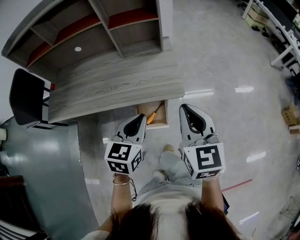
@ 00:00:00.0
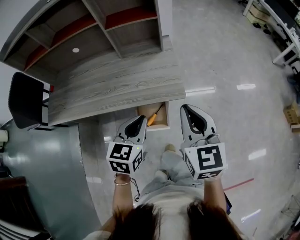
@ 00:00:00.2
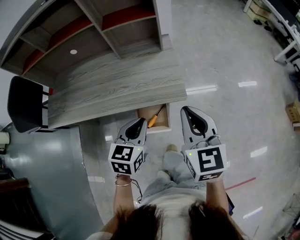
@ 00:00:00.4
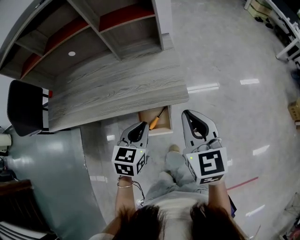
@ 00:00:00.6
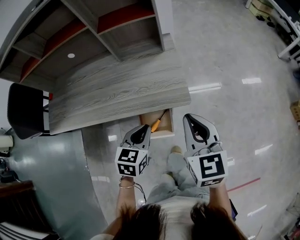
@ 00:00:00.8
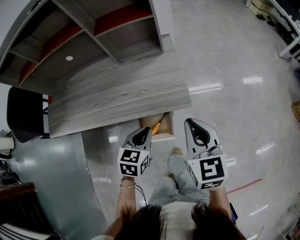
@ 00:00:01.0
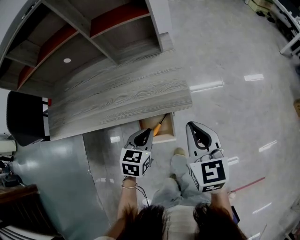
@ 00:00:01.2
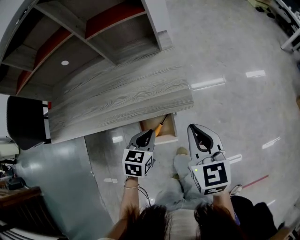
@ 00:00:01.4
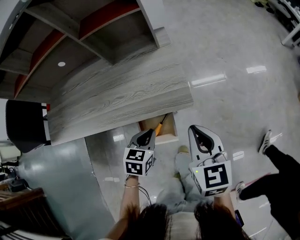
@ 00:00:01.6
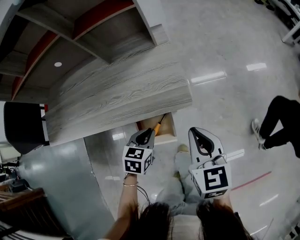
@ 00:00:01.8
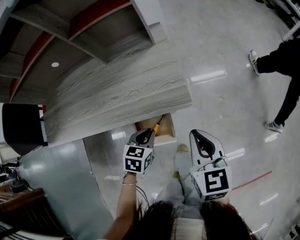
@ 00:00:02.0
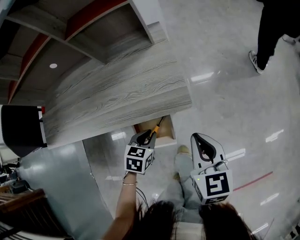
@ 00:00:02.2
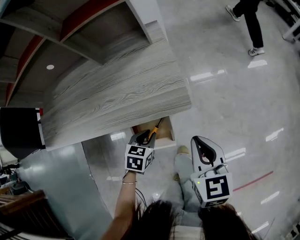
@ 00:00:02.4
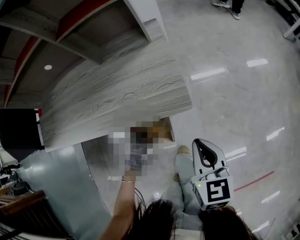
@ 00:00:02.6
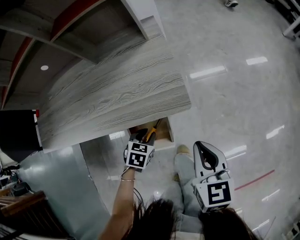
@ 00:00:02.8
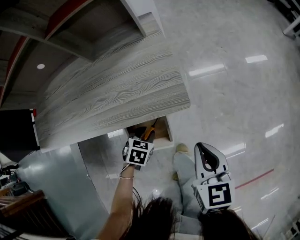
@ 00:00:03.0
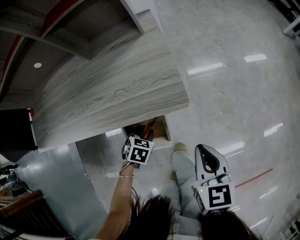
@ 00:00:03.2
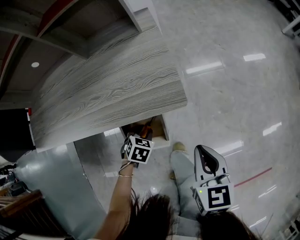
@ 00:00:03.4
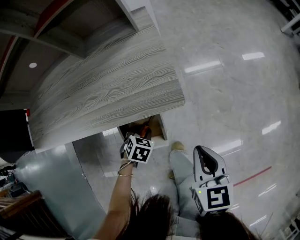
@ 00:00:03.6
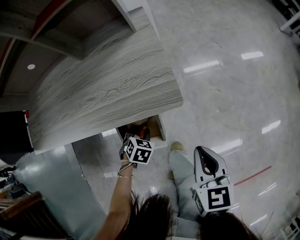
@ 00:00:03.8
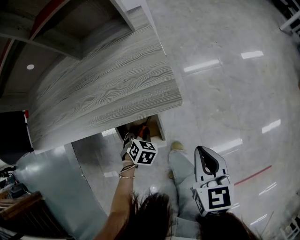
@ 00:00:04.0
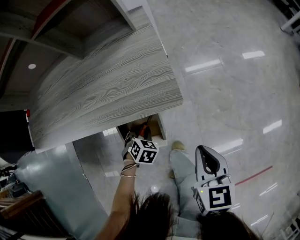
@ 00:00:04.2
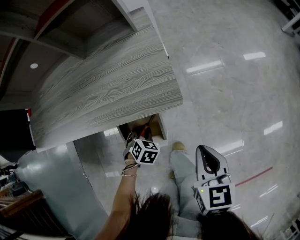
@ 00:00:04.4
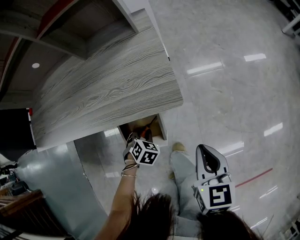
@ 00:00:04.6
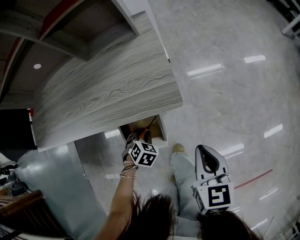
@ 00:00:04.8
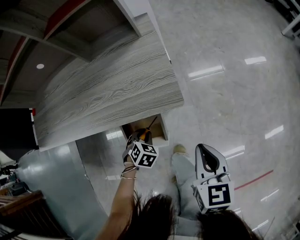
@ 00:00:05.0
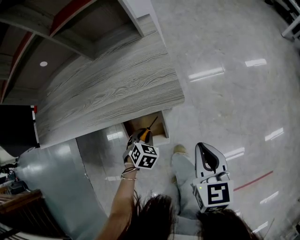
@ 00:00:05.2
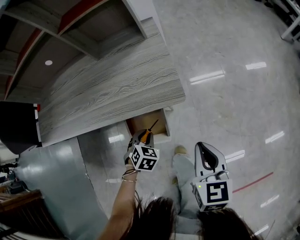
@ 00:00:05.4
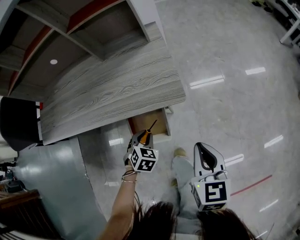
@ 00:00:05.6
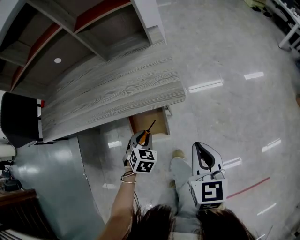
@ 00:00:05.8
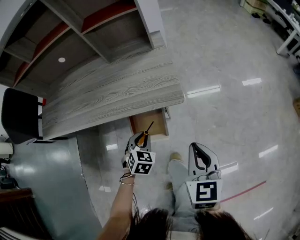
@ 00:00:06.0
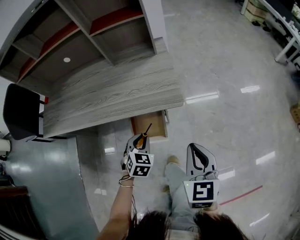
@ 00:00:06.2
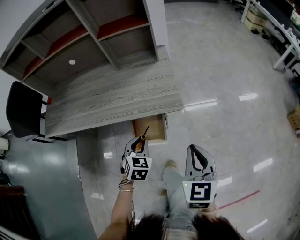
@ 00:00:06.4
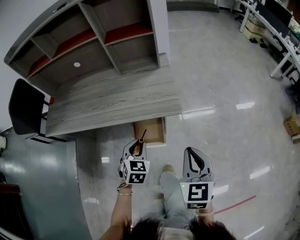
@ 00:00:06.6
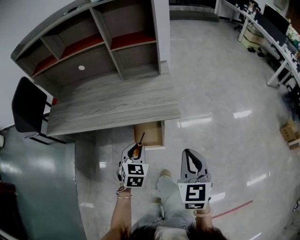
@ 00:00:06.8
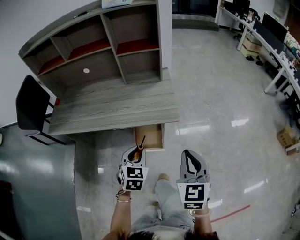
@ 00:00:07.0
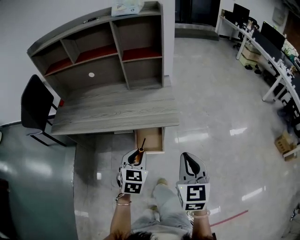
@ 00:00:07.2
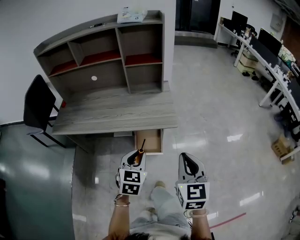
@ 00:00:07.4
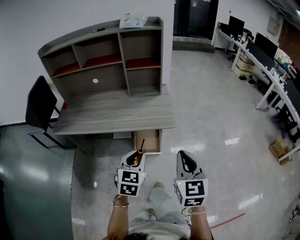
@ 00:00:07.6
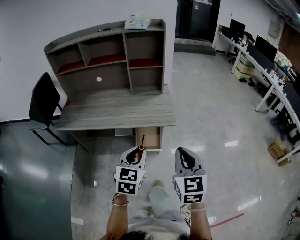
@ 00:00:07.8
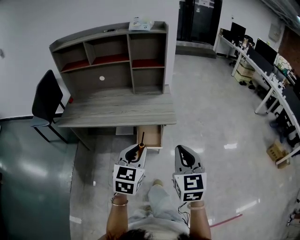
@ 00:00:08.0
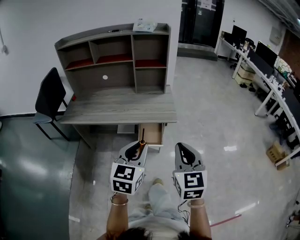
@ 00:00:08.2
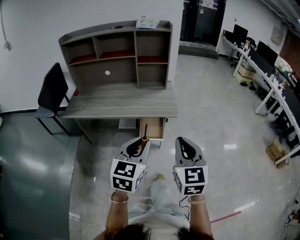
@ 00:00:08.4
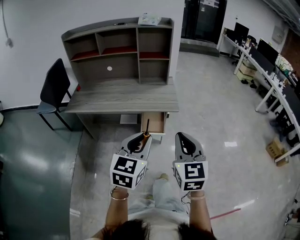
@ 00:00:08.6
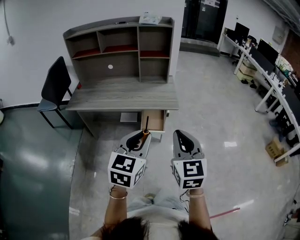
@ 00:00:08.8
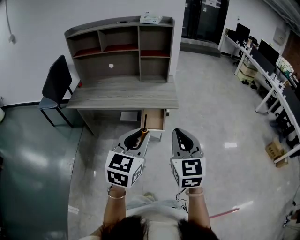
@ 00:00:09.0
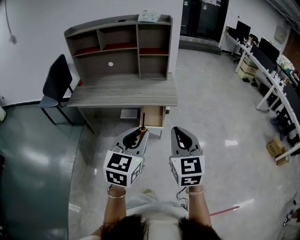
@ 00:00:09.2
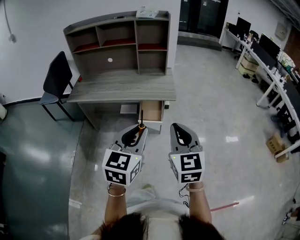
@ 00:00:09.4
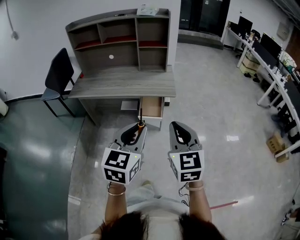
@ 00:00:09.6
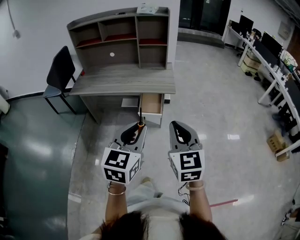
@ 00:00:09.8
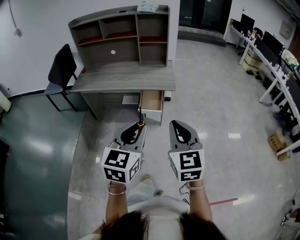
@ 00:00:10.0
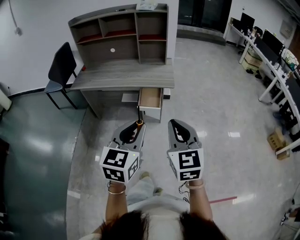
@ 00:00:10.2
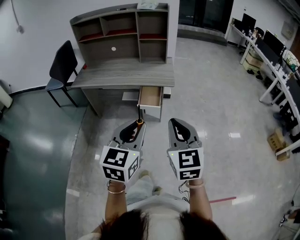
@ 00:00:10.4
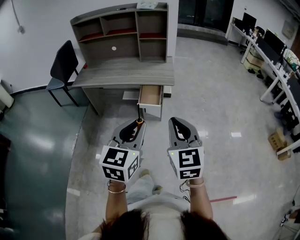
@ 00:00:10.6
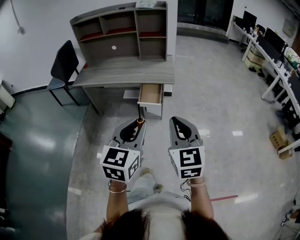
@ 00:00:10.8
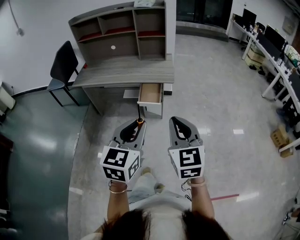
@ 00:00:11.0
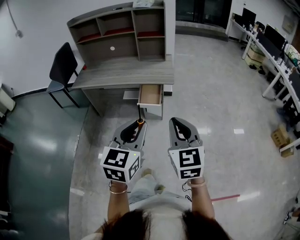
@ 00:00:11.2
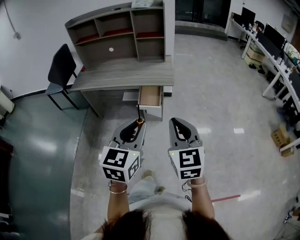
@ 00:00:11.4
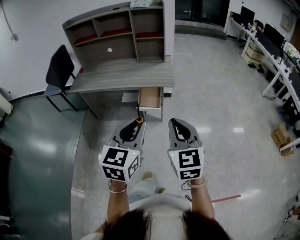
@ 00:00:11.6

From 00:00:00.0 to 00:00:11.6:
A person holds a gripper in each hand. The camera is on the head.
From 00:00:00.0 to 00:00:01.4: The left gripper moves downward, some 20 cm; the right gripper travels downward and forward by approximately 15 cm.
From 00:00:01.4 to 00:00:02.8: The left gripper travels downward by roughly 15 cm, and opens up. Meanwhile the right gripper heads downward, covering roughly 10 cm.
From 00:00:02.8 to 00:00:04.4: The left gripper moves downward, roughly 5 cm, and turns by roughly 20 degrees; the right gripper ends up approximately 5 cm from where it was.
From 00:00:04.4 to 00:00:05.8: The left gripper goes approximately 10 cm upward. Meanwhile the right gripper shifts some 5 cm upward.
From 00:00:05.8 to 00:00:07.2: The two grippers go roughly 20 cm upward and backward. The left gripper swivels some 30 degrees.
From 00:00:07.2 to 00:00:08.8: Both grippers move backward and upward, some 25 cm. The left gripper changes its angle by roughly 20 degrees.
From 00:00:08.8 to 00:00:10.2: Both grippers travel together backward and to the right, approximately 15 cm.
From 00:00:10.2 to 00:00:11.6: The grippers make only small movements.

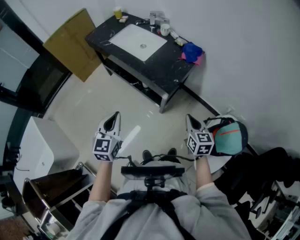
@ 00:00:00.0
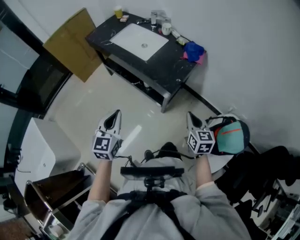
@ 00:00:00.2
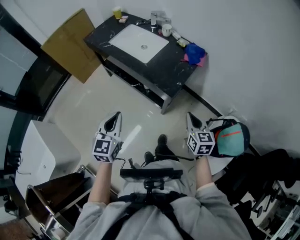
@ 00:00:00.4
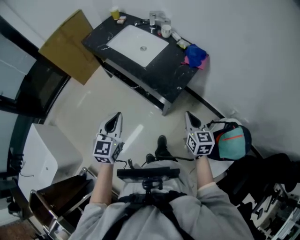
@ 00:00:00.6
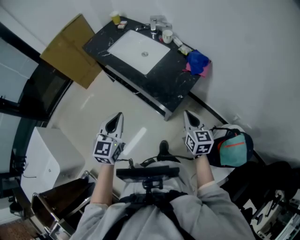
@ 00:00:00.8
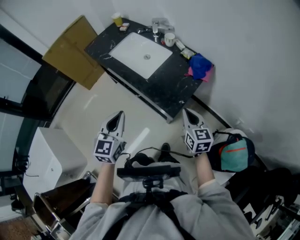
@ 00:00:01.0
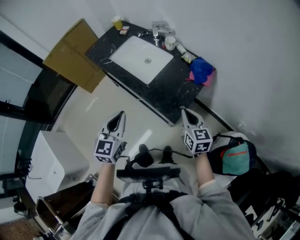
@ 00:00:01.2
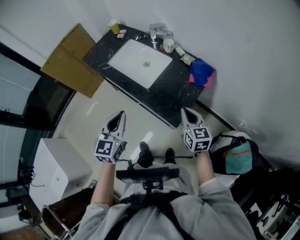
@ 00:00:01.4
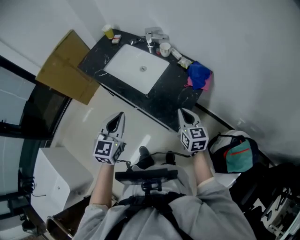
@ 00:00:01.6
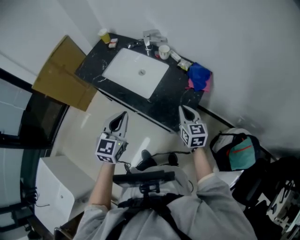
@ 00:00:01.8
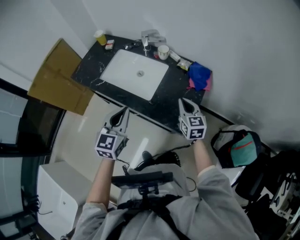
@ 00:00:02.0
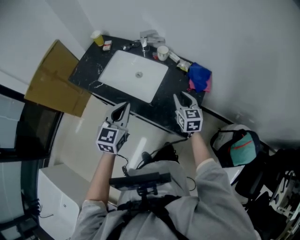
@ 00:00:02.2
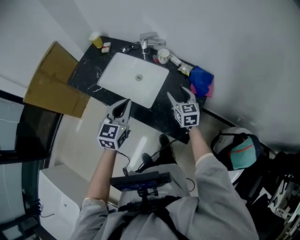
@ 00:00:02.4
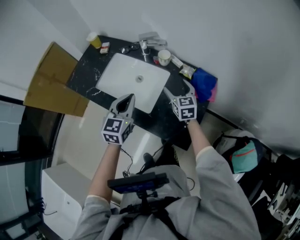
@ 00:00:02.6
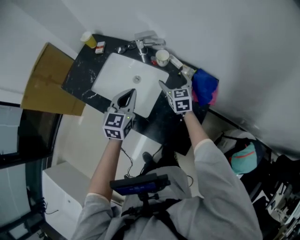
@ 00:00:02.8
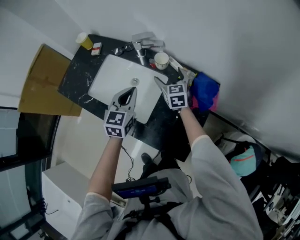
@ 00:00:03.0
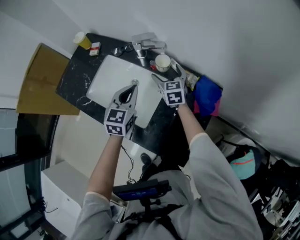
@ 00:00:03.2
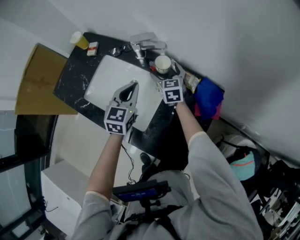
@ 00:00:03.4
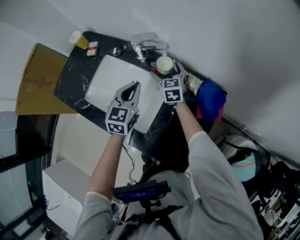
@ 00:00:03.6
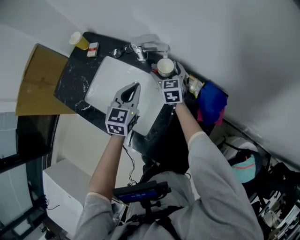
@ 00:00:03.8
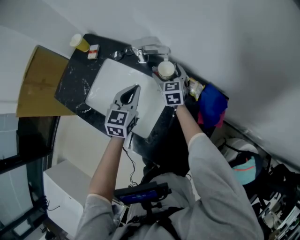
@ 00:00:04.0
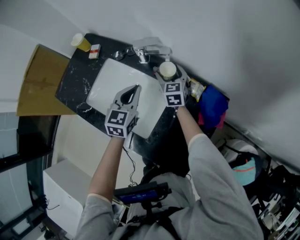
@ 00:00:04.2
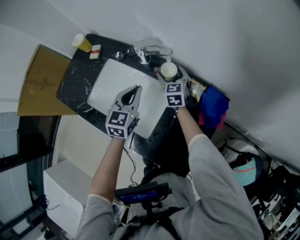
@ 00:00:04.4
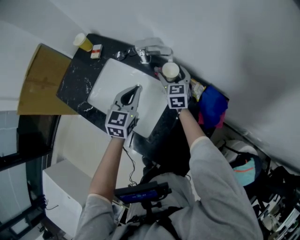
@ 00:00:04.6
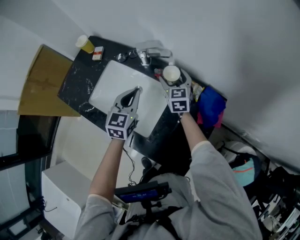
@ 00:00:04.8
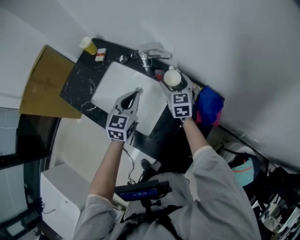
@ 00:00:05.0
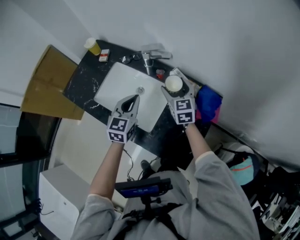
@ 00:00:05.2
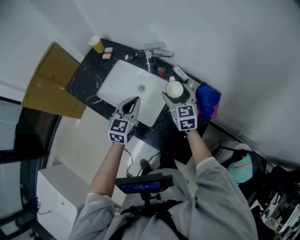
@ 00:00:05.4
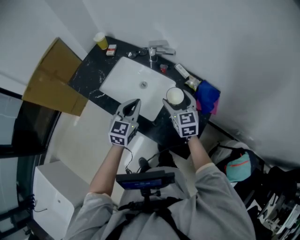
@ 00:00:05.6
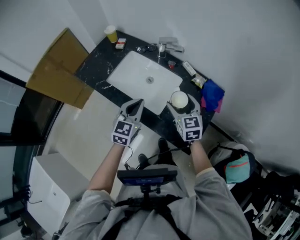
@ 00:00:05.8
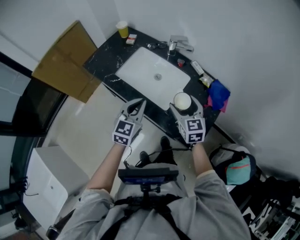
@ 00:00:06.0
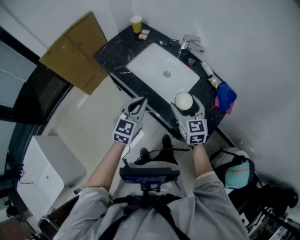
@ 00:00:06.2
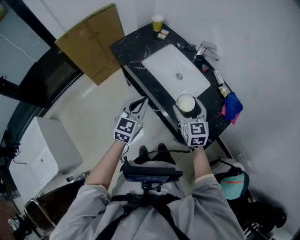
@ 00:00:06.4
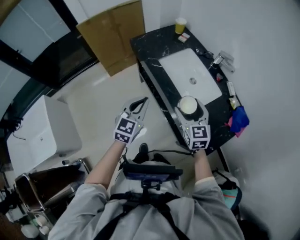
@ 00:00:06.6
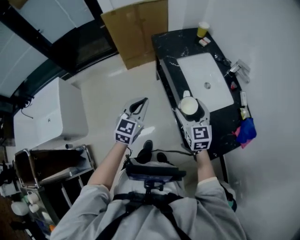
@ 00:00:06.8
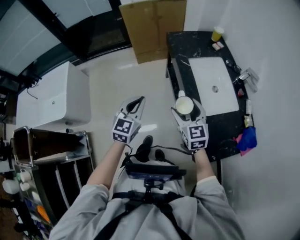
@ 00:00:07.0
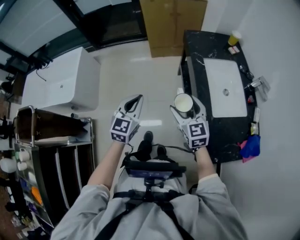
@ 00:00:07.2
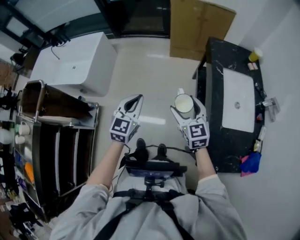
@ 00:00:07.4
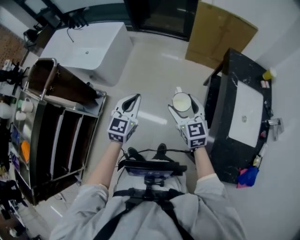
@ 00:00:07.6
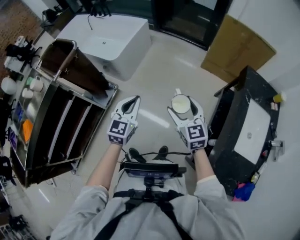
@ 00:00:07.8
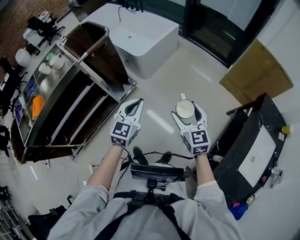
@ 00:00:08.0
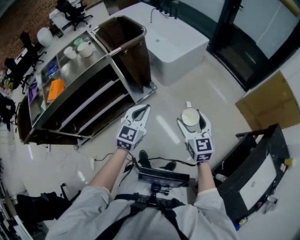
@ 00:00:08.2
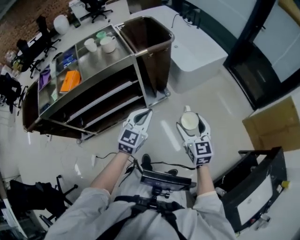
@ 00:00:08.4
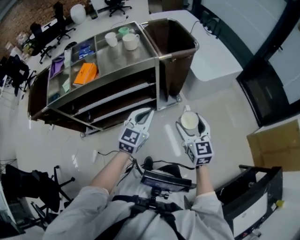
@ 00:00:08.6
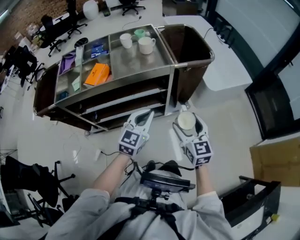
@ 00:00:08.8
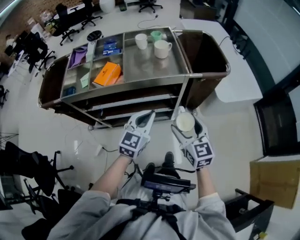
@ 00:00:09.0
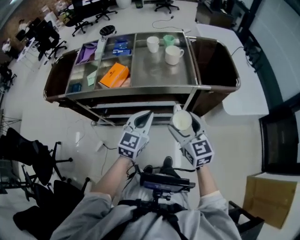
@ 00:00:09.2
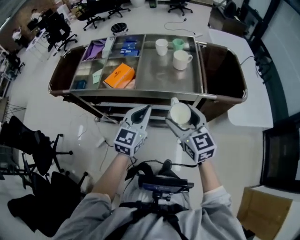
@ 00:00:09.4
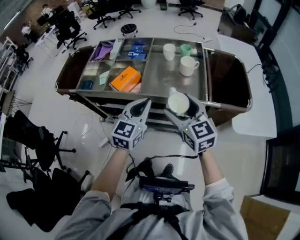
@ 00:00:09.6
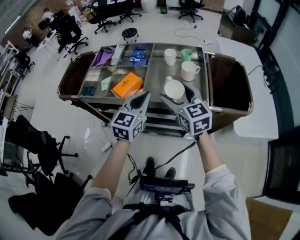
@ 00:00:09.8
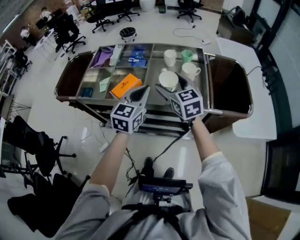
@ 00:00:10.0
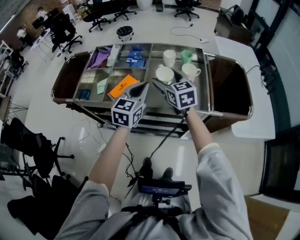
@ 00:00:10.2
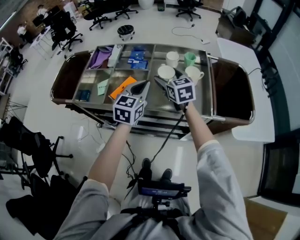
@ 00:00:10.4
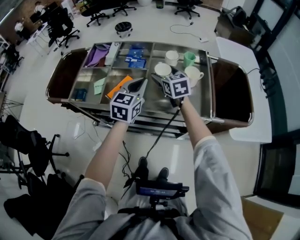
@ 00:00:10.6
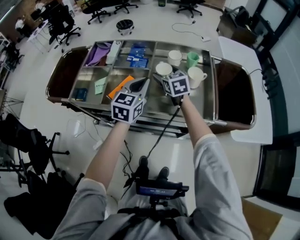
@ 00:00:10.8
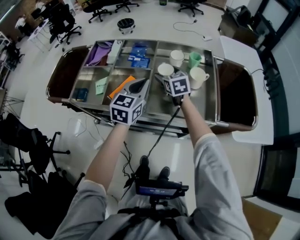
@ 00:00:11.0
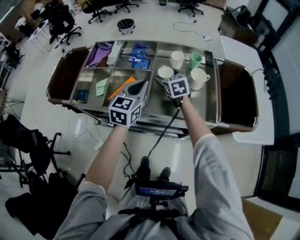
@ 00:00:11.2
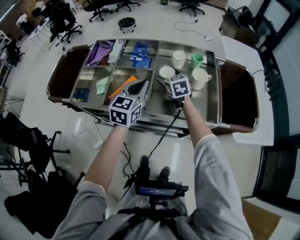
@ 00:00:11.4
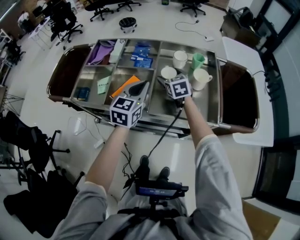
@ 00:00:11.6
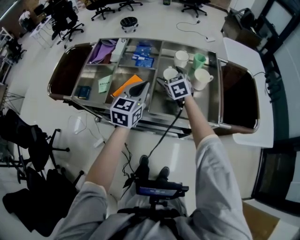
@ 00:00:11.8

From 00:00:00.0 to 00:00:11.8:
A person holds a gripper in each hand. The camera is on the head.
From 00:00:00.0 to 00:00:01.4: The two grippers go roughly 25 cm forward.
From 00:00:01.4 to 00:00:03.0: The two grippers go some 35 cm forward. The right gripper opens up.
From 00:00:03.0 to 00:00:04.4: Both grippers travel together forward, roughly 10 cm.
From 00:00:04.4 to 00:00:06.0: The right gripper shifts about 35 cm backward and upward. The left gripper moves backward, approximately 25 cm.
From 00:00:06.0 to 00:00:07.4: The left gripper shifts by roughly 40 cm, and swivels approximately 60 degrees, while the right gripper moves some 35 cm, and rotates some 70 degrees.
From 00:00:07.4 to 00:00:08.8: The two grippers travel together, about 70 cm. The left gripper rotates some 60 degrees, while the right gripper rotates some 70 degrees.
From 00:00:08.8 to 00:00:10.4: The left gripper changes place by some 35 cm, and turns by about 30 degrees. Meanwhile the right gripper changes place by roughly 50 cm, and swivels some 30 degrees.
From 00:00:10.4 to 00:00:11.8: The right gripper is displaced downward and forward by approximately 10 cm.
